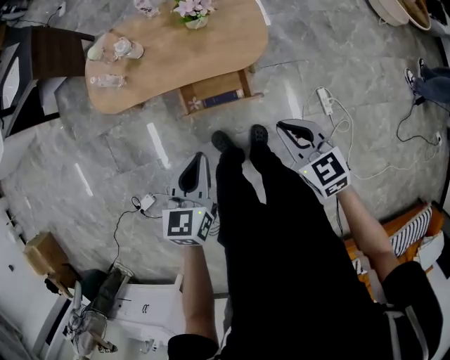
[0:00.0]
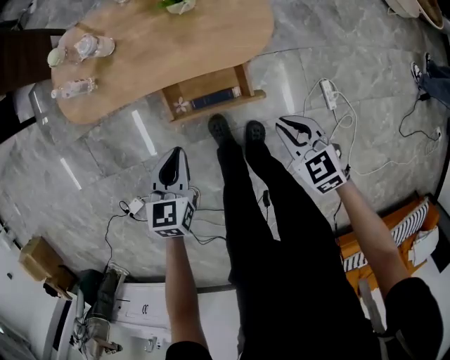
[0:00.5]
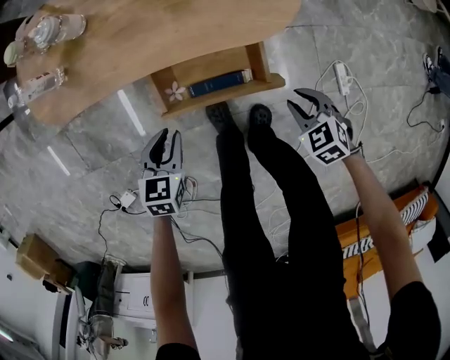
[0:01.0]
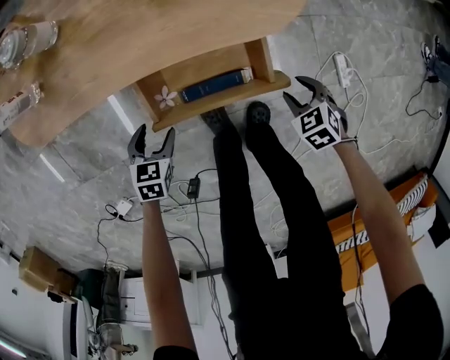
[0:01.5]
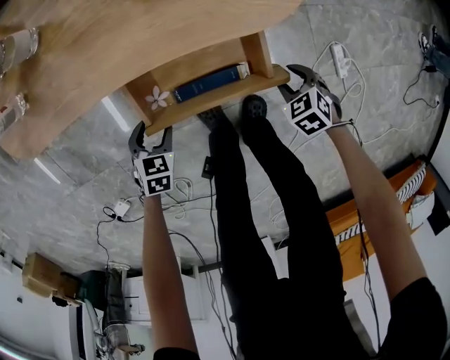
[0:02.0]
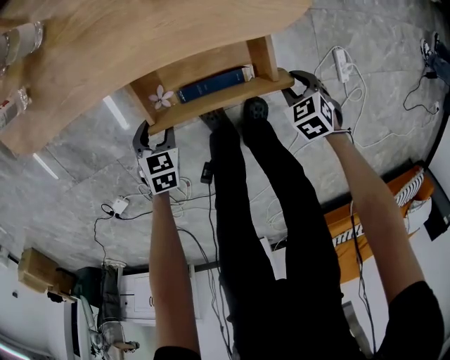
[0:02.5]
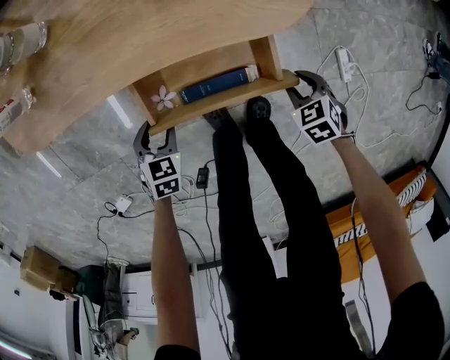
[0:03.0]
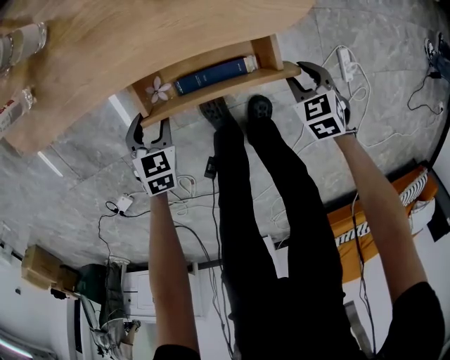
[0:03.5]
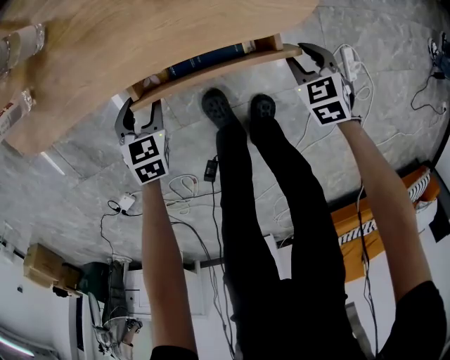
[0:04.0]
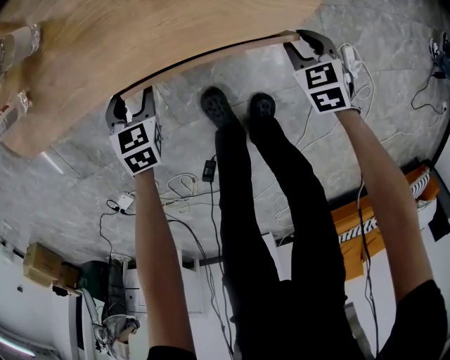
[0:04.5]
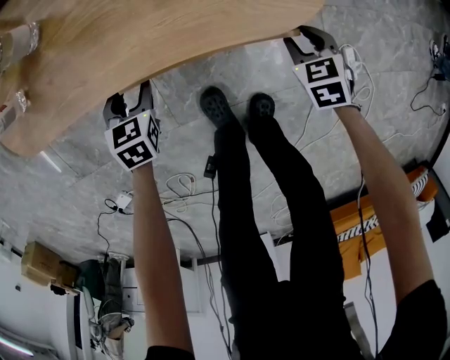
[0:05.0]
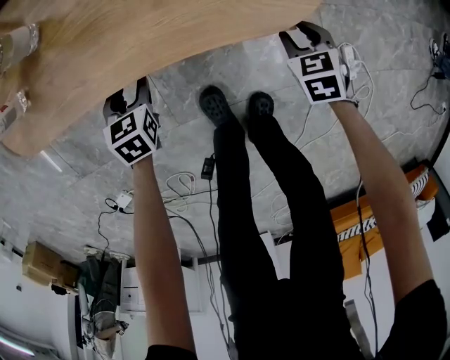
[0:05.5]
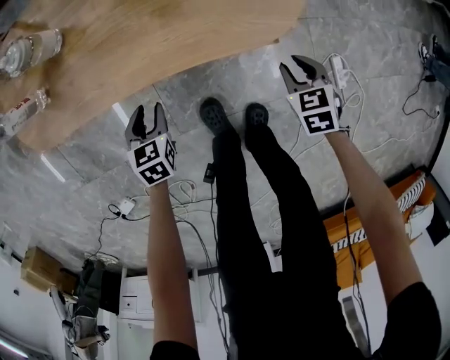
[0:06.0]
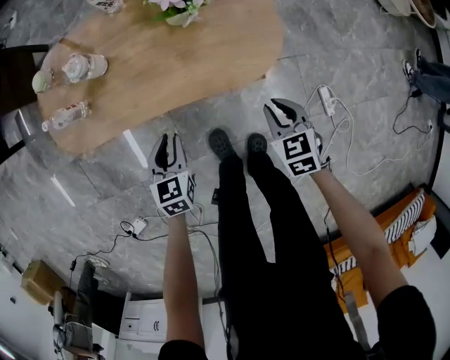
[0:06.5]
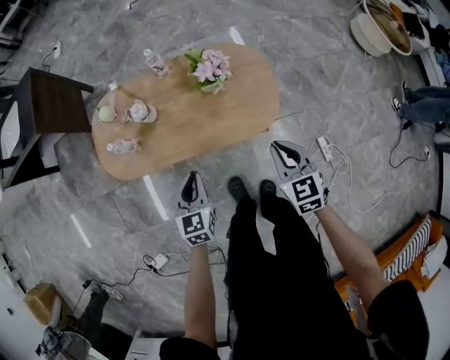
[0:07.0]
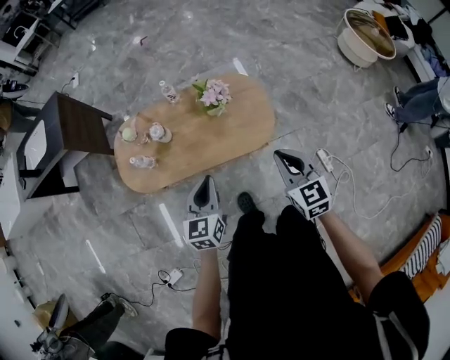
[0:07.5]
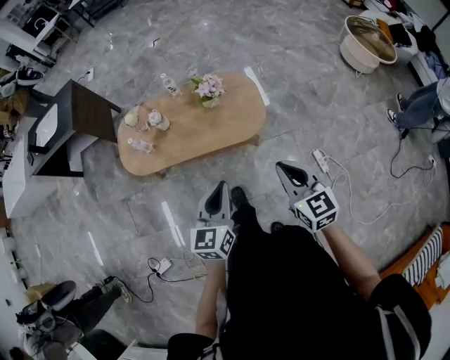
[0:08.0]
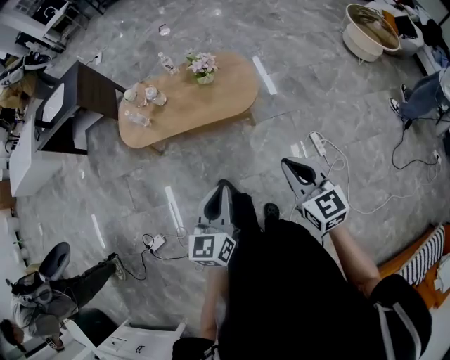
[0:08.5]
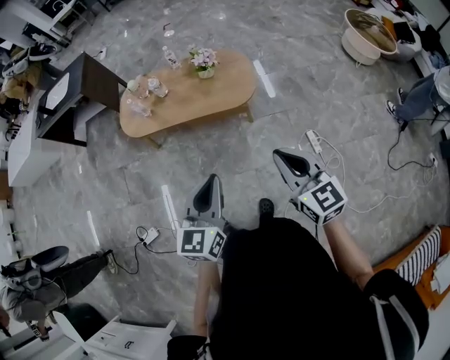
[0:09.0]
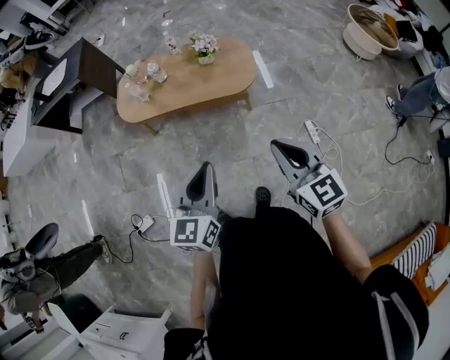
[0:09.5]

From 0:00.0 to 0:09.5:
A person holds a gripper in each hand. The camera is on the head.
From 0:00.0 to 0:02.0: The two grippers go about 50 cm downward. The right gripper points its fingers some 40 degrees further downward, and opens, while the left gripper tips its fingers downward by some 30 degrees, and opens.
From 0:02.0 to 0:04.0: The right gripper moves approximately 10 cm, while the left gripper ends up about 10 cm from where it was.
From 0:04.0 to 0:05.5: The grippers both shift forward by approximately 5 cm.
From 0:05.5 to 0:07.5: Both grippers move upward, roughly 60 cm. The left gripper angles its fingers upward, by approximately 30 degrees, and closes its fingers; the right gripper angles its fingers upward, by approximately 40 degrees, and closes up.
From 0:07.5 to 0:09.5: Both grippers travel together backward, about 40 cm.

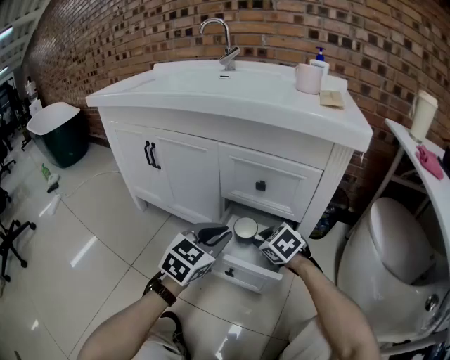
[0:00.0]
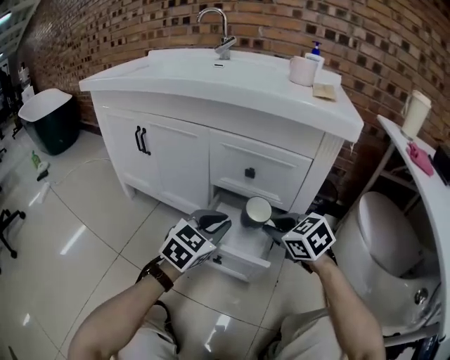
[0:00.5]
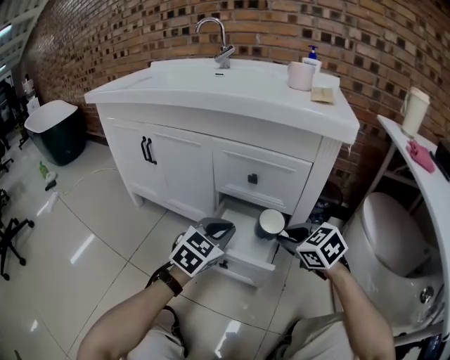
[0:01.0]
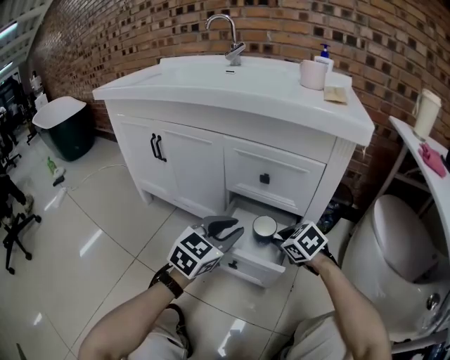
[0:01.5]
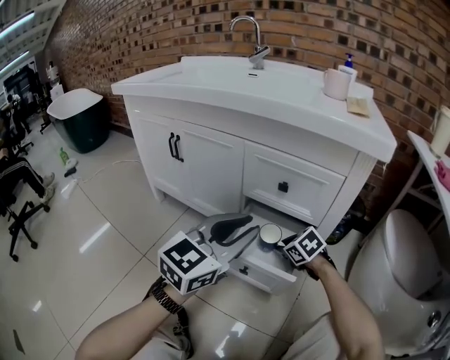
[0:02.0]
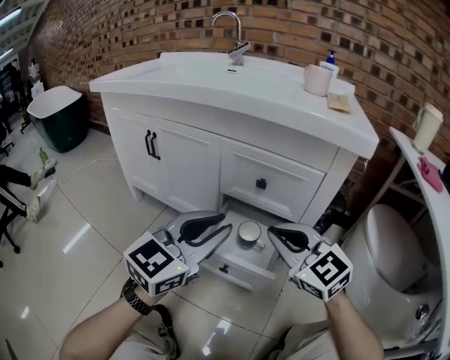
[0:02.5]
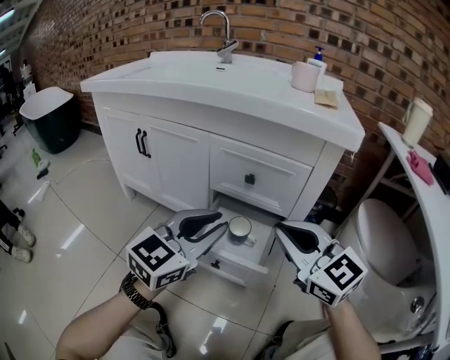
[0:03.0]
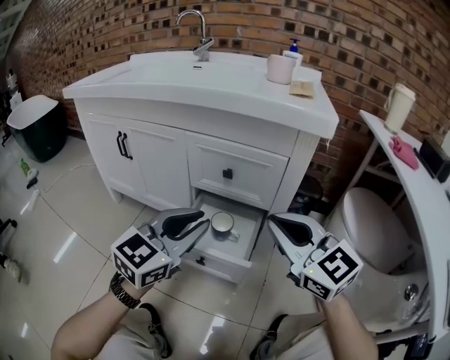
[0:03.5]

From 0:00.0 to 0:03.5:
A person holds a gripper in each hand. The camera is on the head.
From 0:00.0 to 0:02.0: The left gripper travels upward and backward by about 10 cm. The right gripper reaches approximately 10 cm upward, then returns.
From 0:02.0 to 0:03.5: The right gripper travels upward and backward by approximately 30 cm, and angles its fingers upward, by approximately 50 degrees.

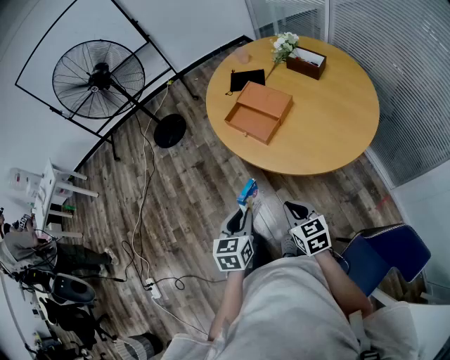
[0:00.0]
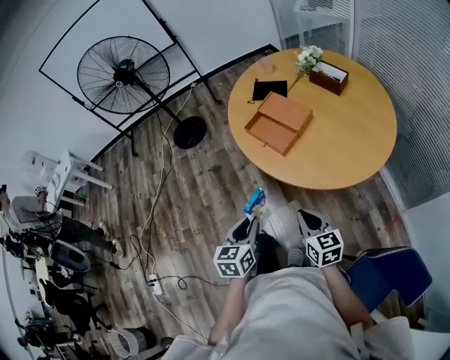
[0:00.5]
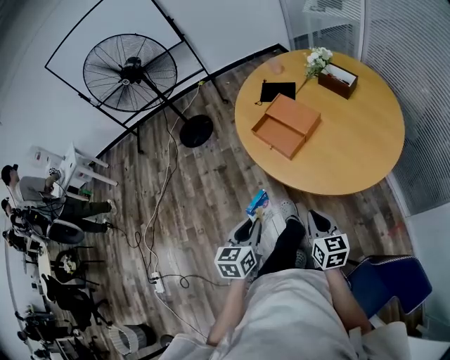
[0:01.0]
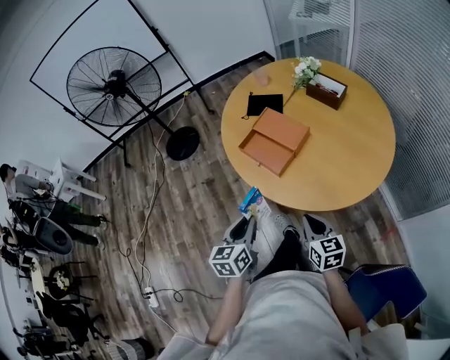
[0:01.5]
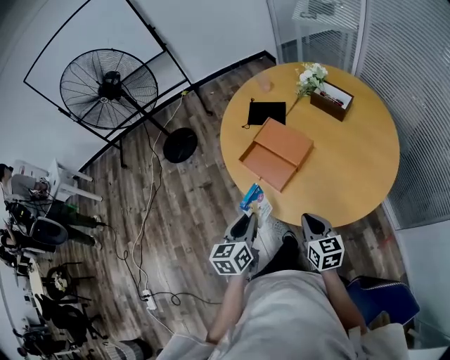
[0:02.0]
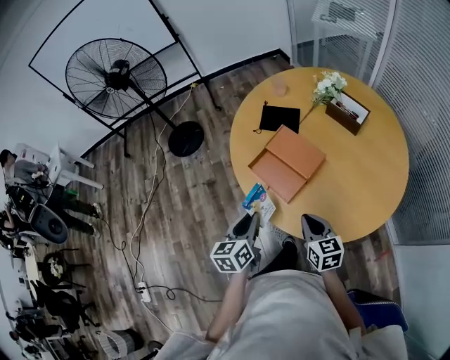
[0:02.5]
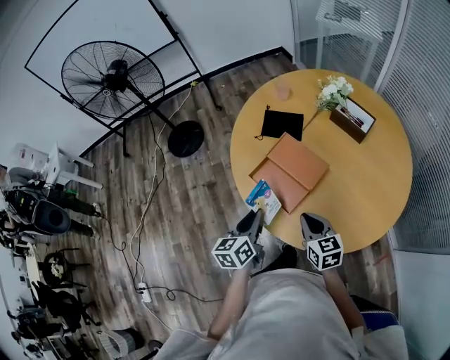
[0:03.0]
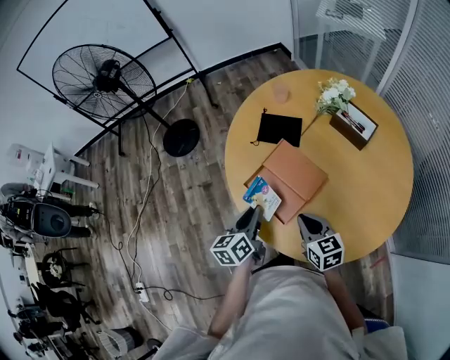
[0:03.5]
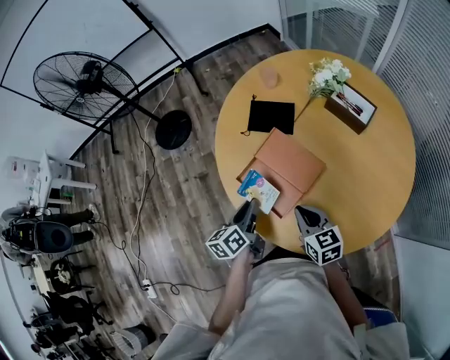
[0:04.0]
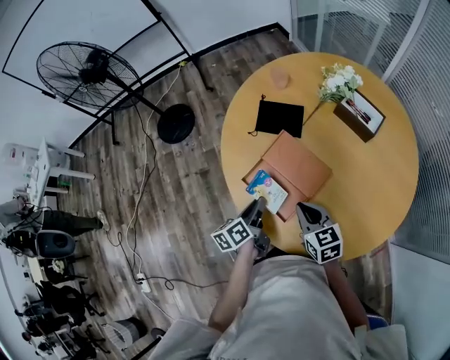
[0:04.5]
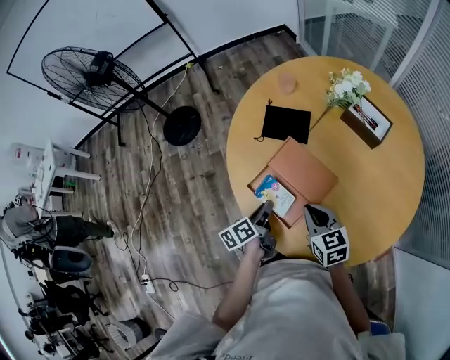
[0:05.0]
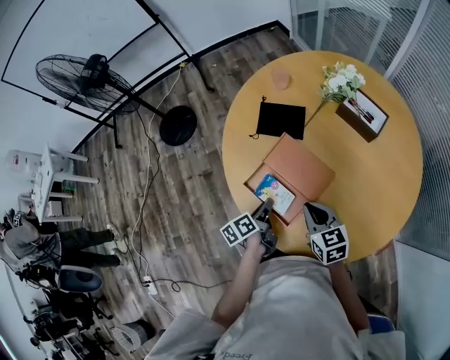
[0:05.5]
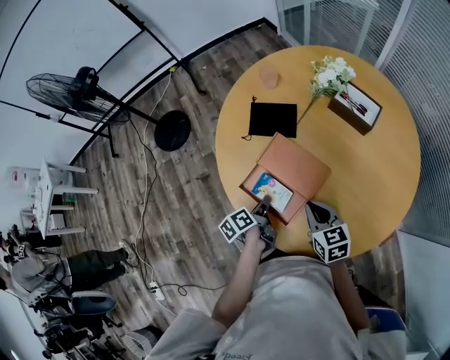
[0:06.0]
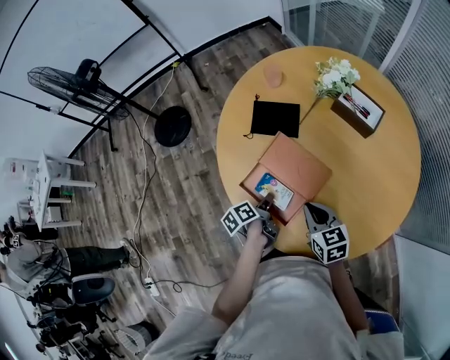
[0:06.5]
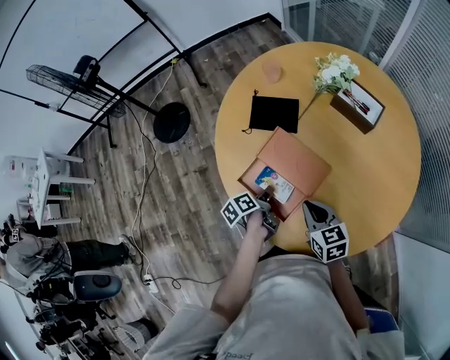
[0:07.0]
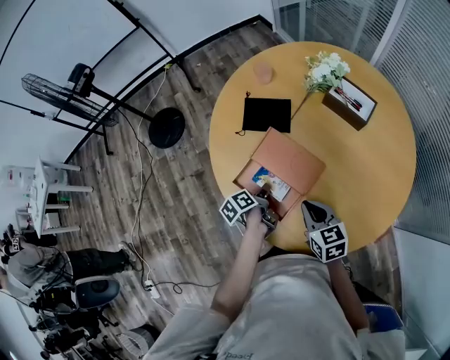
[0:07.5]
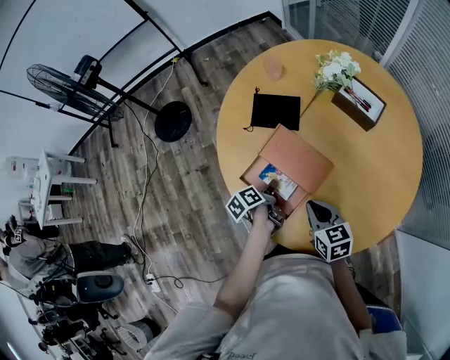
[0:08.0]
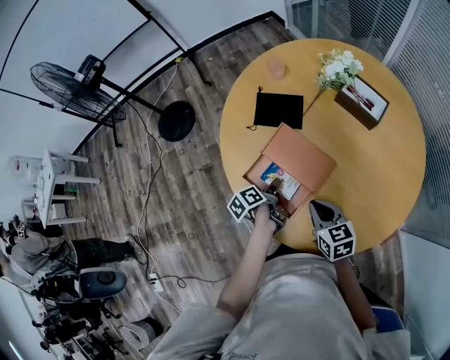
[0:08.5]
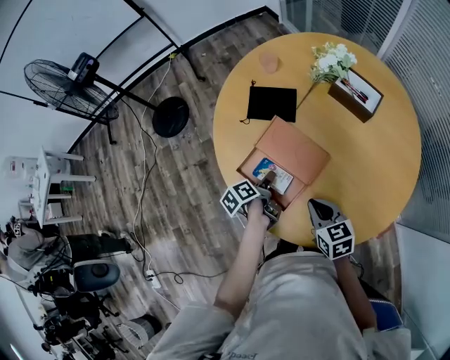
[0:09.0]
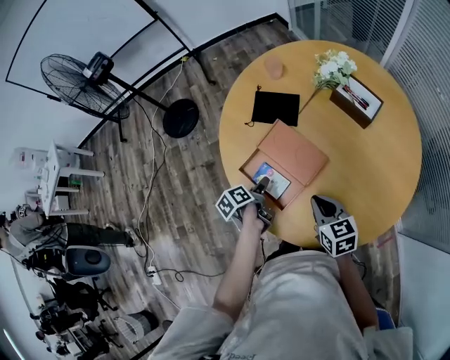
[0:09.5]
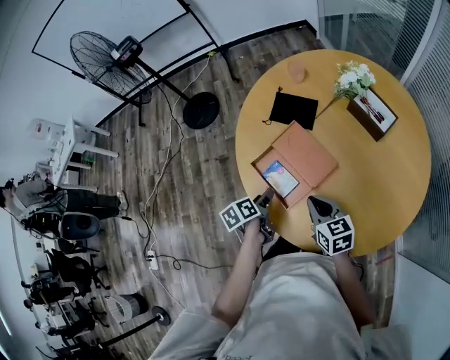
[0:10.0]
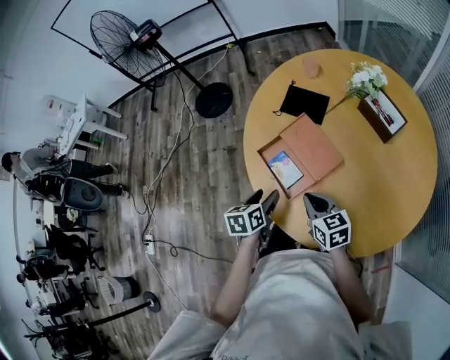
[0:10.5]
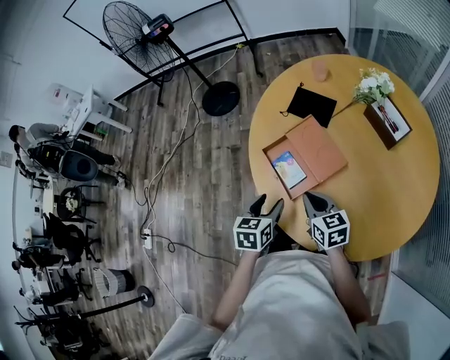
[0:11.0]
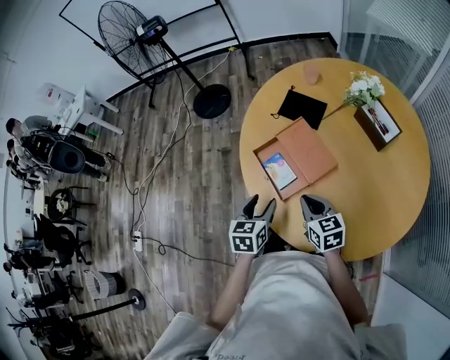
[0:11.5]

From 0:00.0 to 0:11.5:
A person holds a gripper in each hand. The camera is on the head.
From 0:00.0 to 0:02.0: The right gripper travels forward and to the right by approximately 15 cm, while the left gripper heads forward, covering roughly 20 cm.
From 0:02.0 to 0:04.0: Both grippers travel together forward, about 20 cm. The left gripper swivels some 20 degrees.
From 0:04.0 to 0:06.0: The left gripper travels downward by about 10 cm, and turns by about 30 degrees.
From 0:06.0 to 0:07.5: There are only small adjustments of the grippers.
From 0:07.5 to 0:09.5: The left gripper opens its fingers.
From 0:09.5 to 0:11.5: The left gripper is displaced backward and upward by about 15 cm, and rotates around the line of its fingers by approximately 50 degrees, clockwise from behind.

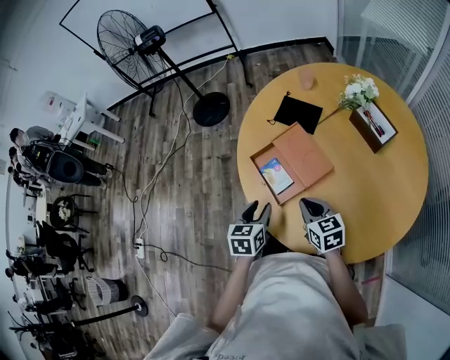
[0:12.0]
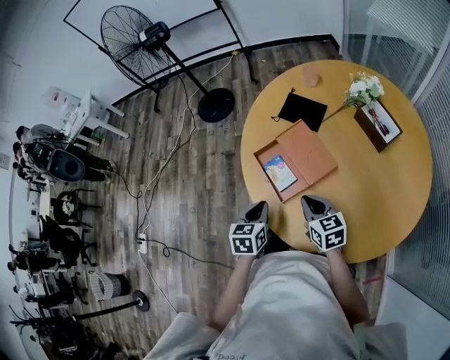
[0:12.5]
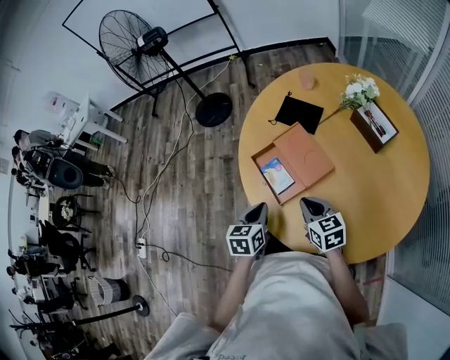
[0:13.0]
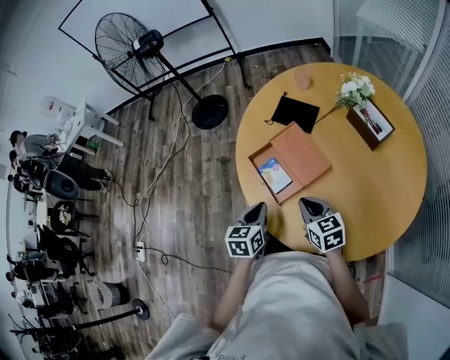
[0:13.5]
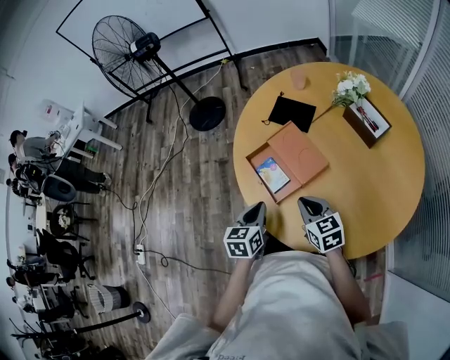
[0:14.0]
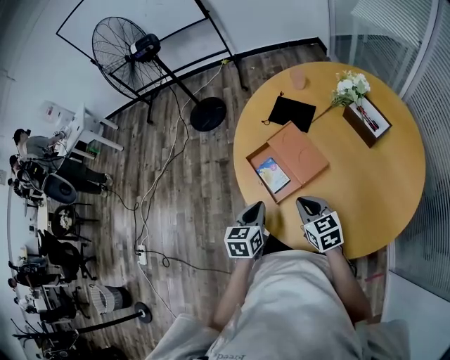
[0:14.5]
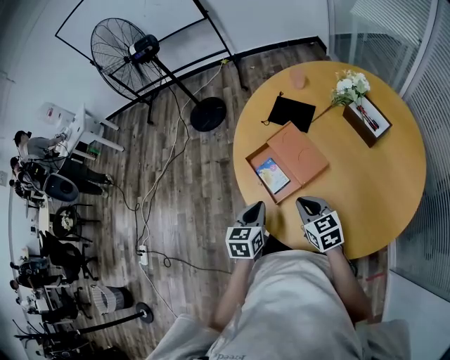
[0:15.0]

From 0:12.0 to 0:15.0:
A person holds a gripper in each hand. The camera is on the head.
From 0:12.0 to 0:13.5: The left gripper closes its fingers.
From 0:13.5 to 0:15.0: The grippers move only a little.
